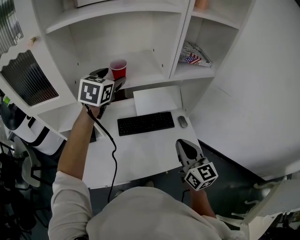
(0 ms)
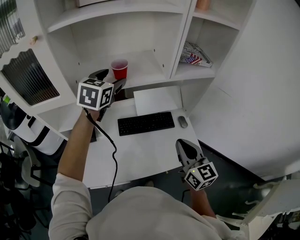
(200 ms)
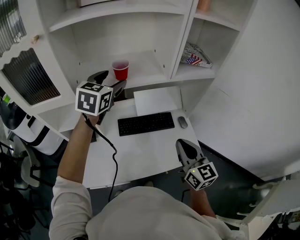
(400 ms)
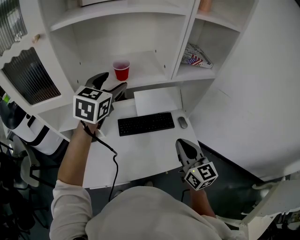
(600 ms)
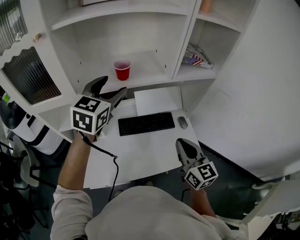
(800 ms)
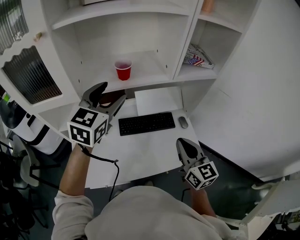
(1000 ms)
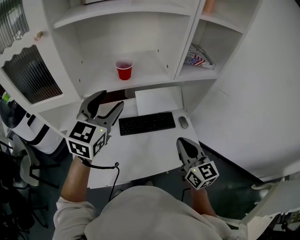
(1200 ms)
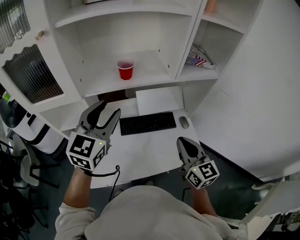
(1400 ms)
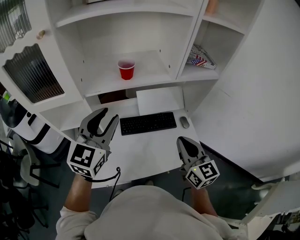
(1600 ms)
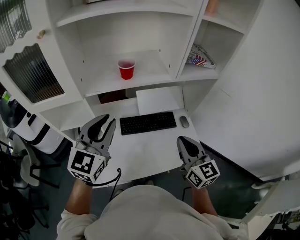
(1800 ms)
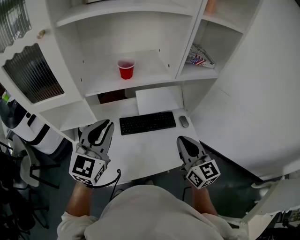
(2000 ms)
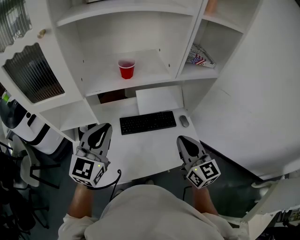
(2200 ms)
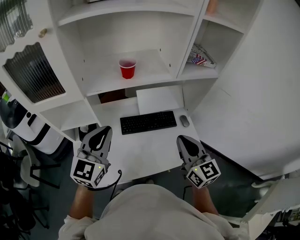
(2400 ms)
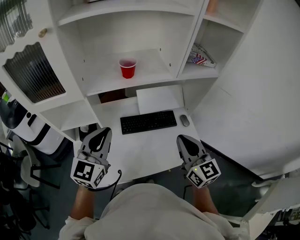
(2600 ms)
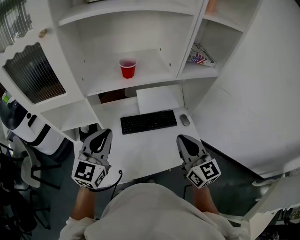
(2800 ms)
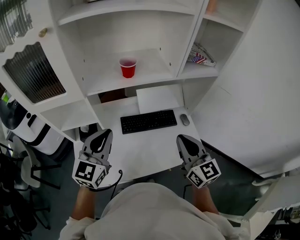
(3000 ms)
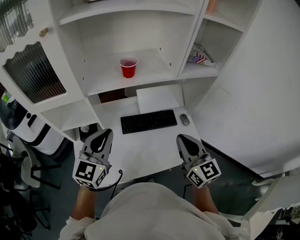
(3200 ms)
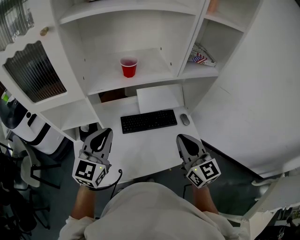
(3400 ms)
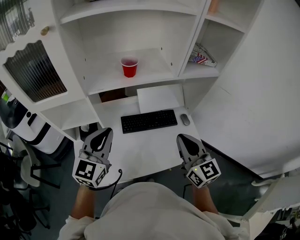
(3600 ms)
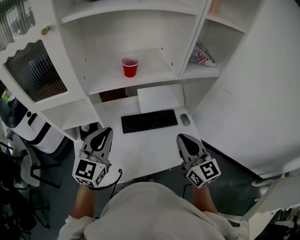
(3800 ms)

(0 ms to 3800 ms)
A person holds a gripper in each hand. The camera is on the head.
0 ms - 1200 ms: The left gripper travels backward by roughly 15 cm.
1200 ms - 2600 ms: The left gripper is displaced backward and downward by approximately 10 cm, and closes up.
2600 ms - 3800 ms: The grippers make only small movements.

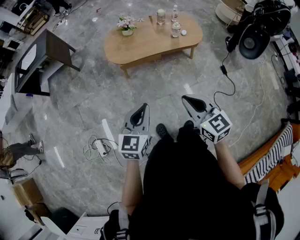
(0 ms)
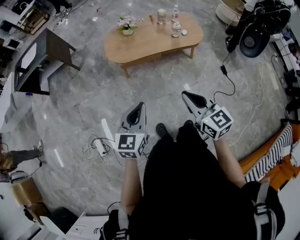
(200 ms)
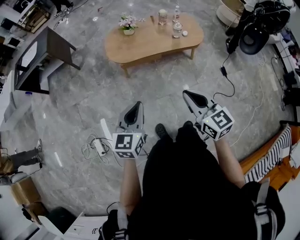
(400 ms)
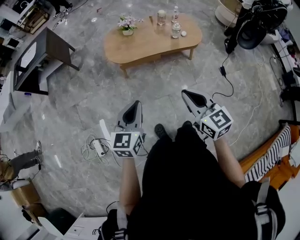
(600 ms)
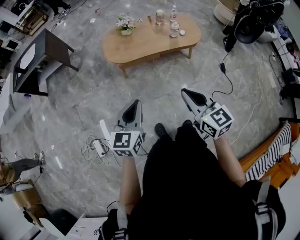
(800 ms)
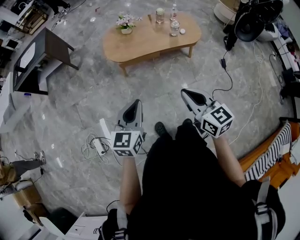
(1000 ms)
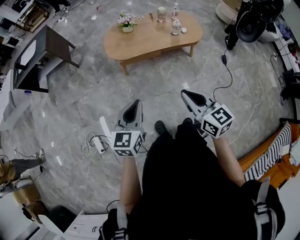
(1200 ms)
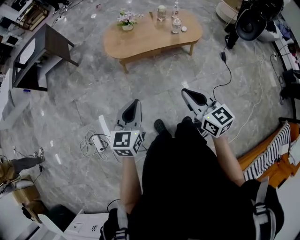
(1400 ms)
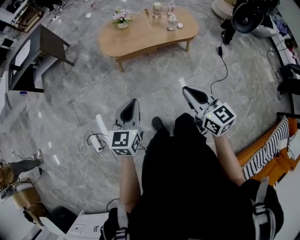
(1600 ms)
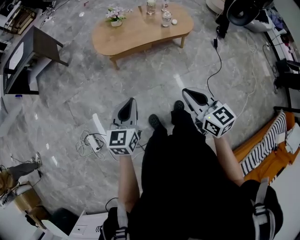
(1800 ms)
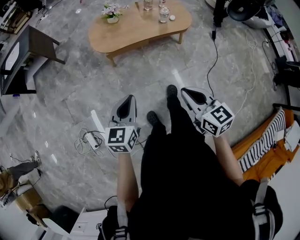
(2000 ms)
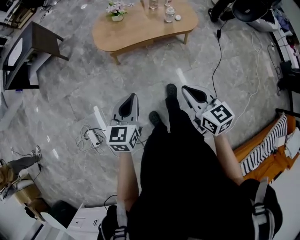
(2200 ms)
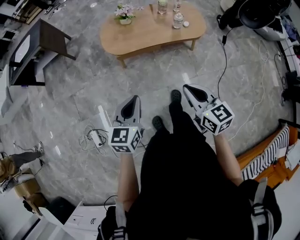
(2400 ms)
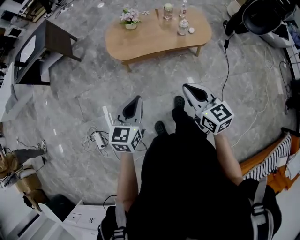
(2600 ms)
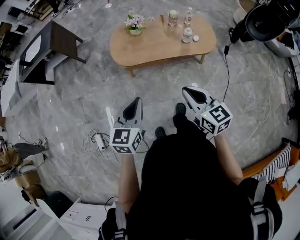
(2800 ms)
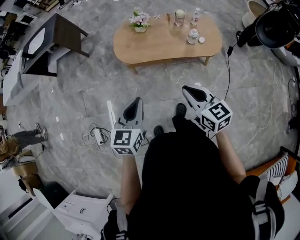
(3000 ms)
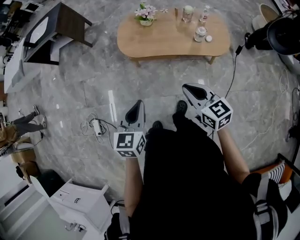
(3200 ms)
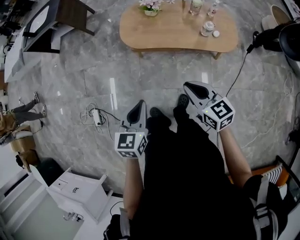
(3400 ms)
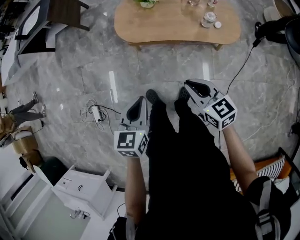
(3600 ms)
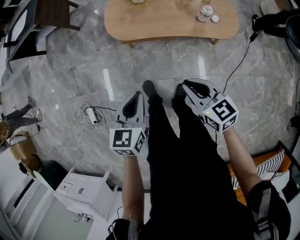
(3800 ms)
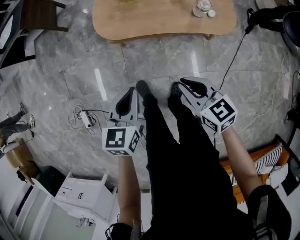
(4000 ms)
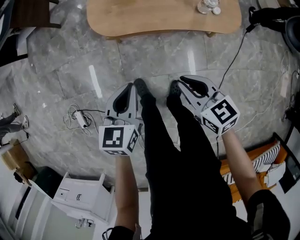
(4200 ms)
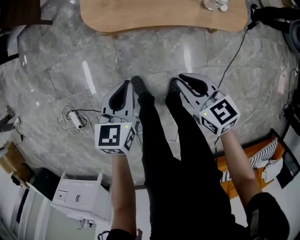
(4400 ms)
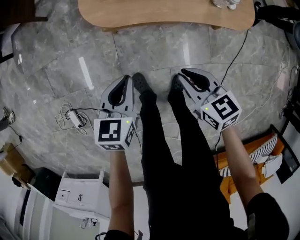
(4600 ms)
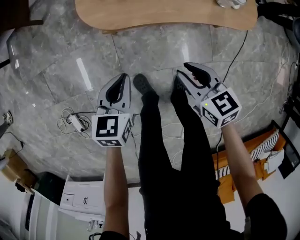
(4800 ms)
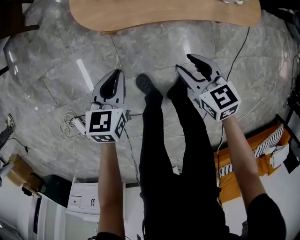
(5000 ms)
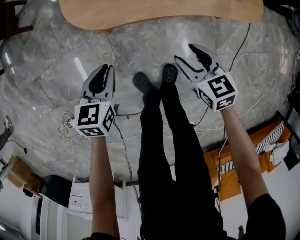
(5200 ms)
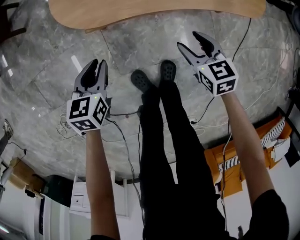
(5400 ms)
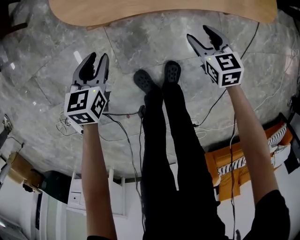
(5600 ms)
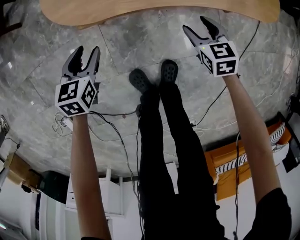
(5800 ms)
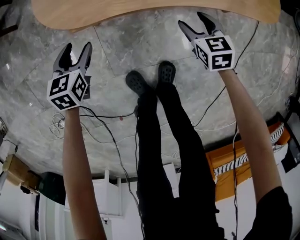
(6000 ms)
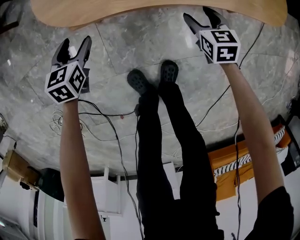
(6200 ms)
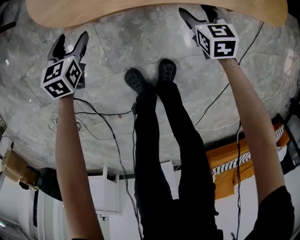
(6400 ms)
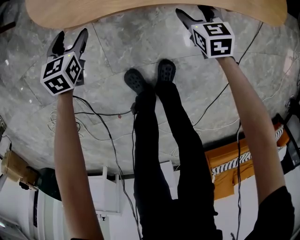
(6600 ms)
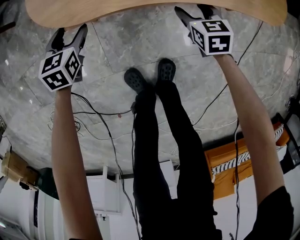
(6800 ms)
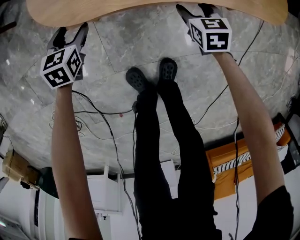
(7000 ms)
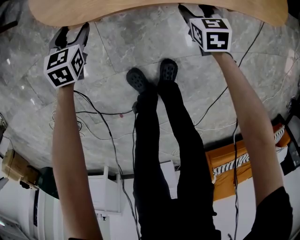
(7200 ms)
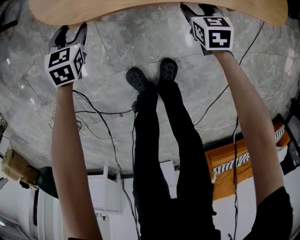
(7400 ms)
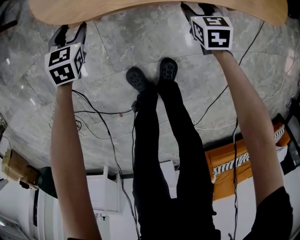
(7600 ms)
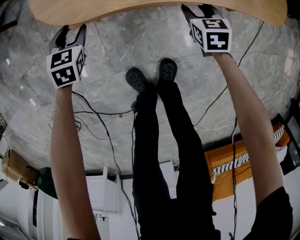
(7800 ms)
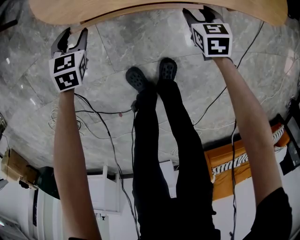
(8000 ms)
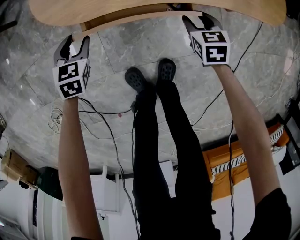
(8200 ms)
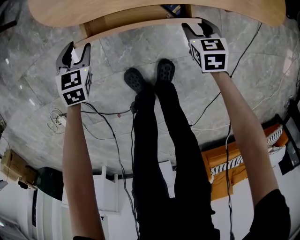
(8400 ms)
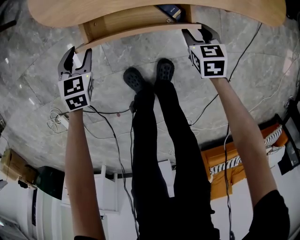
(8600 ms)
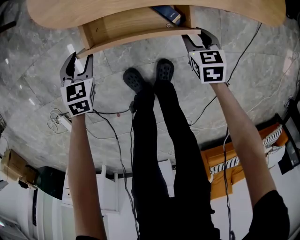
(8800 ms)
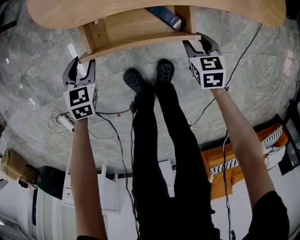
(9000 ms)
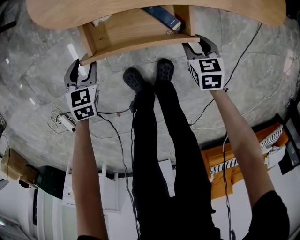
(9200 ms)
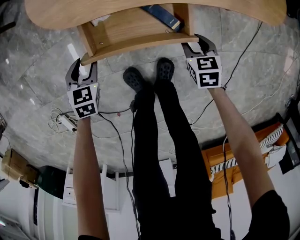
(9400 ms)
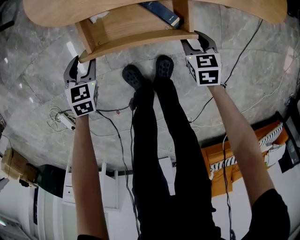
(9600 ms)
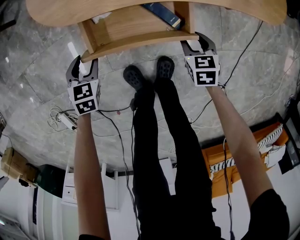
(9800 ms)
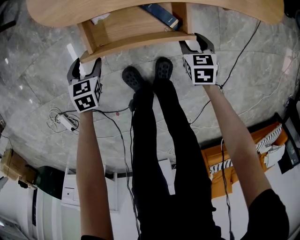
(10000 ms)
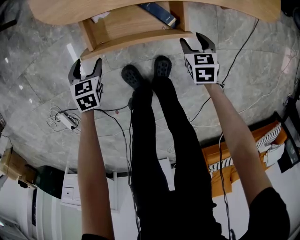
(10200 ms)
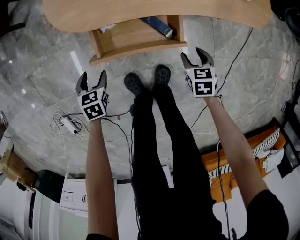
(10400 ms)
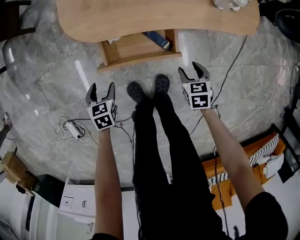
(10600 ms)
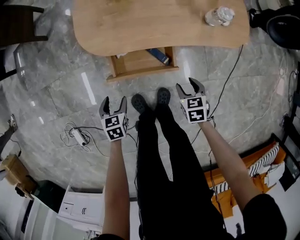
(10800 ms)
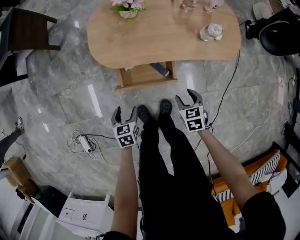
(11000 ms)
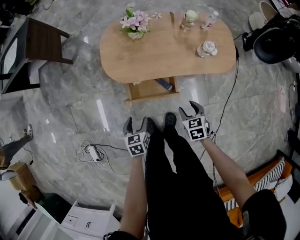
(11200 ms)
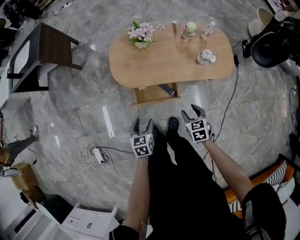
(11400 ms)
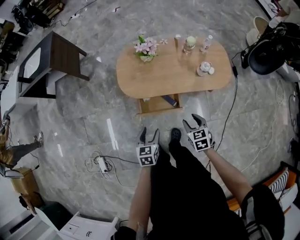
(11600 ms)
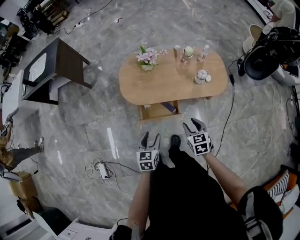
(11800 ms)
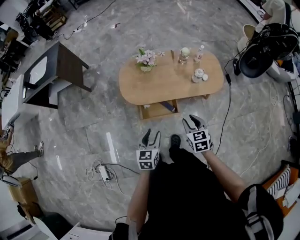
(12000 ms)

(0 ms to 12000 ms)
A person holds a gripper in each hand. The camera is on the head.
0 ms - 1600 ms: There are only small adjustments of the grippers.
1600 ms - 3000 ms: The grippers both shift forward and to the right by approximately 20 cm.
3000 ms - 4400 ms: Both grippers move downward and forward, approximately 30 cm.
4400 ms - 6000 ms: Both grippers travel together downward and forward, about 40 cm. The right gripper rotates some 30 degrees, and opens its fingers. Meanwhile the left gripper opens up.
6000 ms - 7600 ms: The right gripper moves approximately 5 cm. The left gripper is displaced forward by approximately 5 cm.
7600 ms - 9000 ms: The grippers both shift backward by roughly 10 cm.
9000 ms - 10400 ms: The right gripper changes place by roughly 5 cm. The left gripper shifts by about 5 cm.
10400 ms - 12000 ms: Both grippers move upward, about 50 cm. The left gripper tilts its fingers approximately 30 degrees upward, and closes; the right gripper changes its angle by approximately 30 degrees.

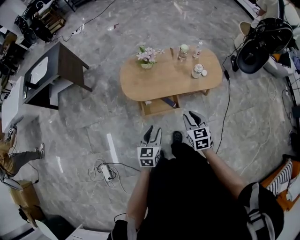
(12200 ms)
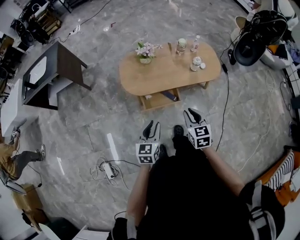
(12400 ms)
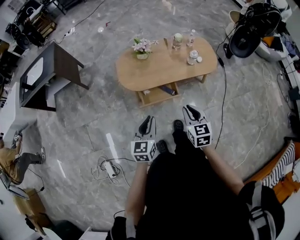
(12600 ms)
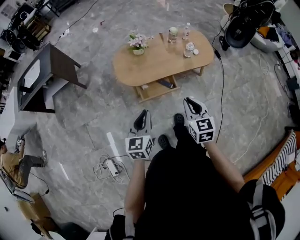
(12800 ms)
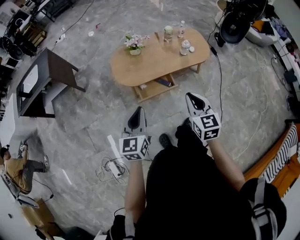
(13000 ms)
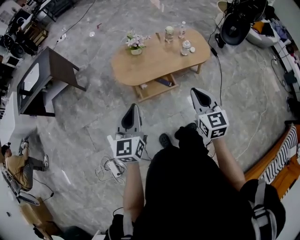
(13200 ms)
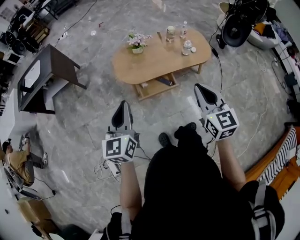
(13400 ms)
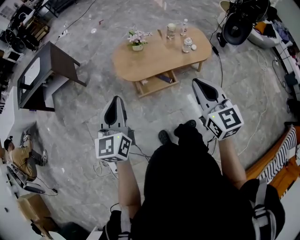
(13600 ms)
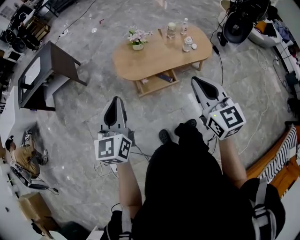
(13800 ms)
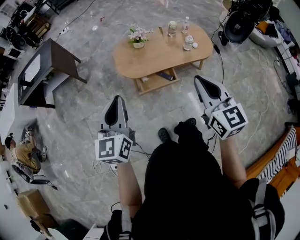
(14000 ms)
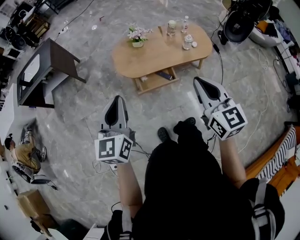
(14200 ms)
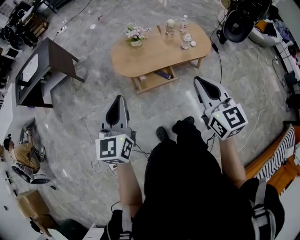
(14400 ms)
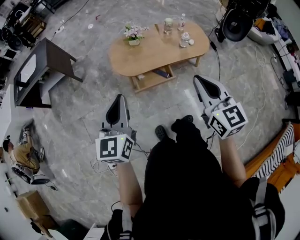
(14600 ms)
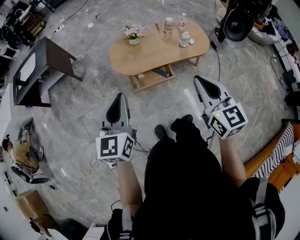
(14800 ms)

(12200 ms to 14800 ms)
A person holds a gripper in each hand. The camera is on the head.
12200 ms - 13400 ms: The left gripper travels upward and to the left by about 25 cm, turns by roughly 20 degrees, and closes up. Meanwhile the right gripper heads upward and backward, covering about 25 cm, rotates roughly 20 degrees, and closes its fingers.
13400 ms - 14800 ms: There are only small adjustments of the grippers.

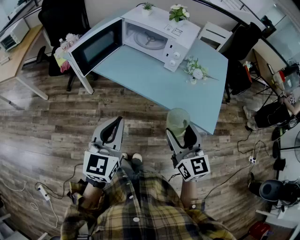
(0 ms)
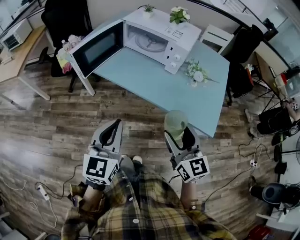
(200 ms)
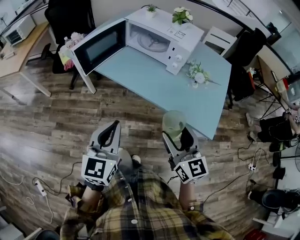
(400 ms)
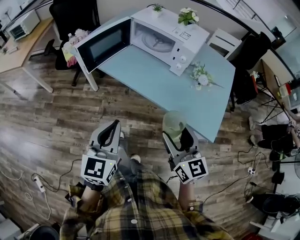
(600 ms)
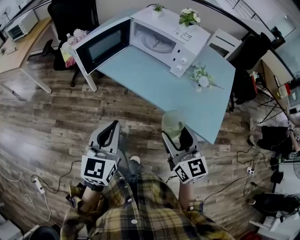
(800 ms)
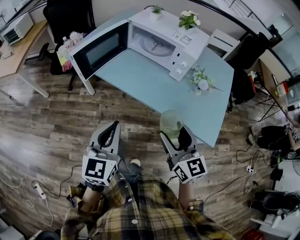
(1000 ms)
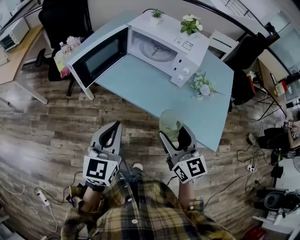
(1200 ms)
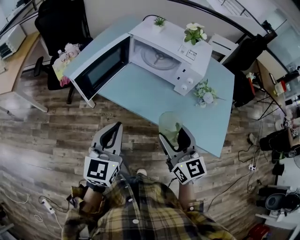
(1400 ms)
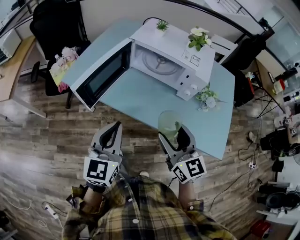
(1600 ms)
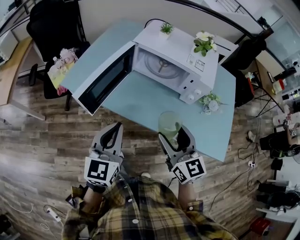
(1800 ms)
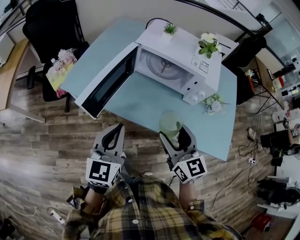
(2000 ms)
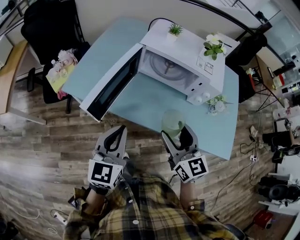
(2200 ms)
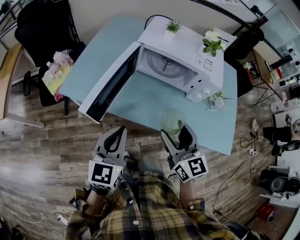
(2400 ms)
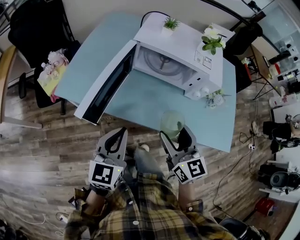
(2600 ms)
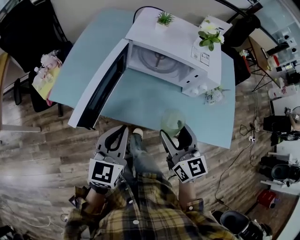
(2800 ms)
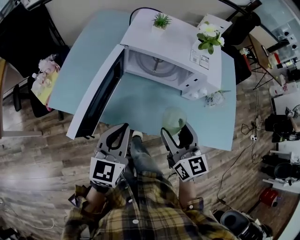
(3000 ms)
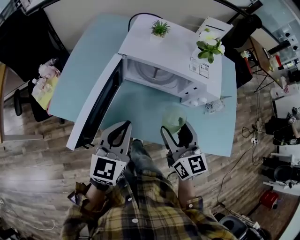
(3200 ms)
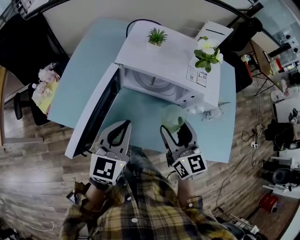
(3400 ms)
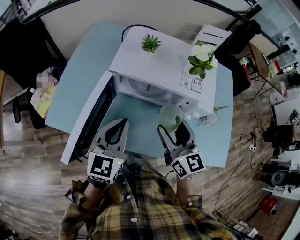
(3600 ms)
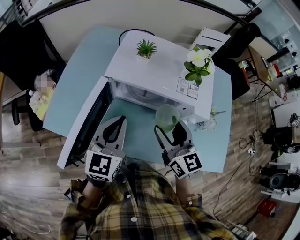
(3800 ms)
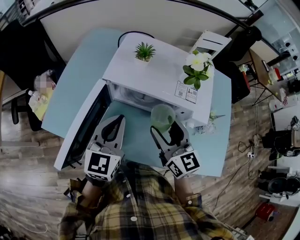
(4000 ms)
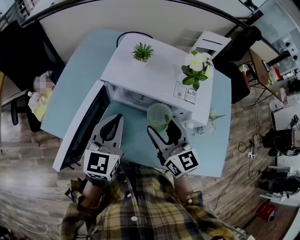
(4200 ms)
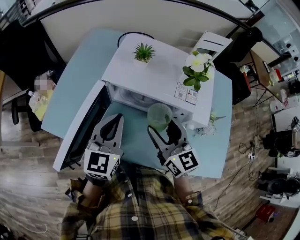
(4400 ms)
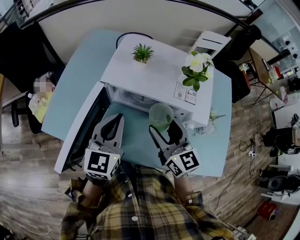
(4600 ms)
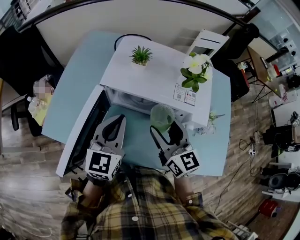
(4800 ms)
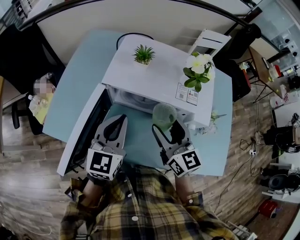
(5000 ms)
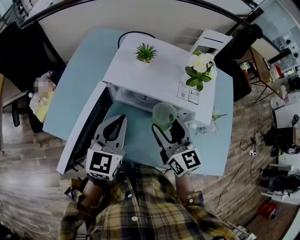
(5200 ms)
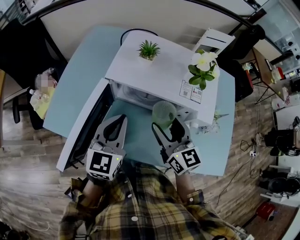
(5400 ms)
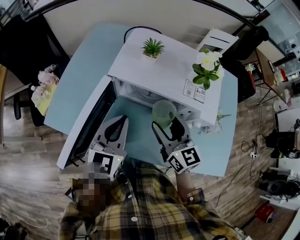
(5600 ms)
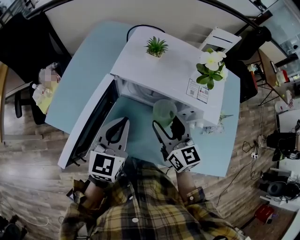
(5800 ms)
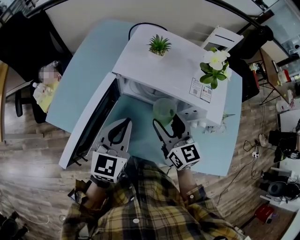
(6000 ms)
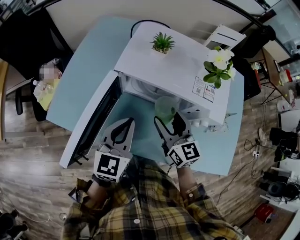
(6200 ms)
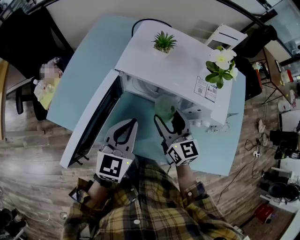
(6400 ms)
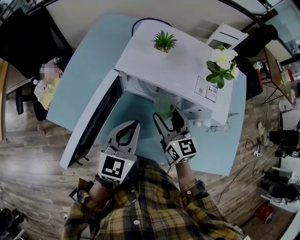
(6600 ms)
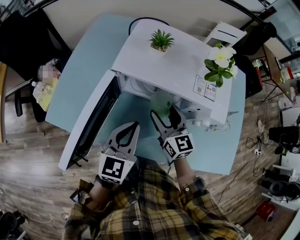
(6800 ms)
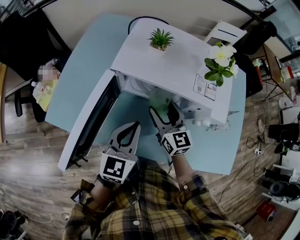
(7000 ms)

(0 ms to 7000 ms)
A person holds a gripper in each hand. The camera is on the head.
0 ms - 1400 ms: The two grippers go about 15 cm forward and to the left.
1400 ms - 2800 ms: The two grippers go about 15 cm forward and to the left.
2800 ms - 4200 ms: Both grippers travel together forward, some 20 cm.
4200 ms - 5600 ms: The grippers stay close to where they were, moving slightly.
5600 ms - 7000 ms: The left gripper ends up approximately 5 cm from where it was. Meanwhile the right gripper travels downward and forward by roughly 10 cm.
